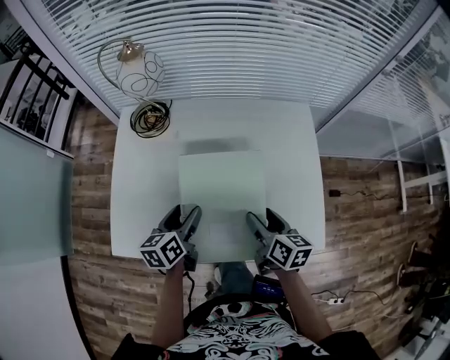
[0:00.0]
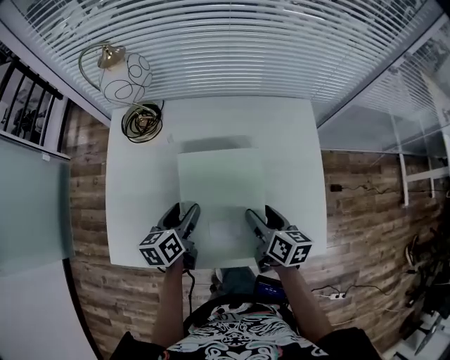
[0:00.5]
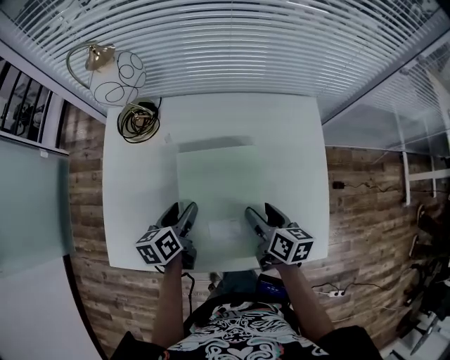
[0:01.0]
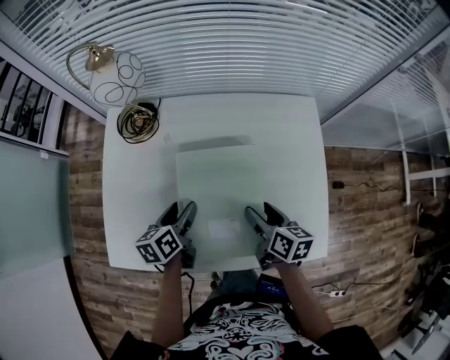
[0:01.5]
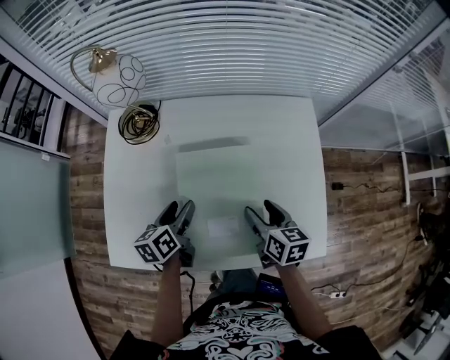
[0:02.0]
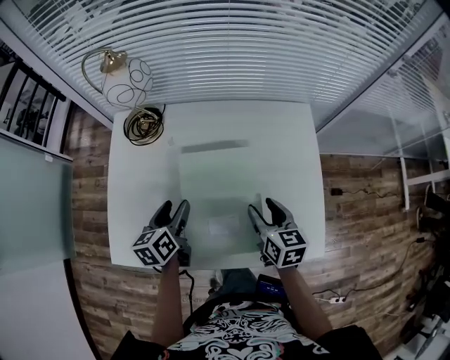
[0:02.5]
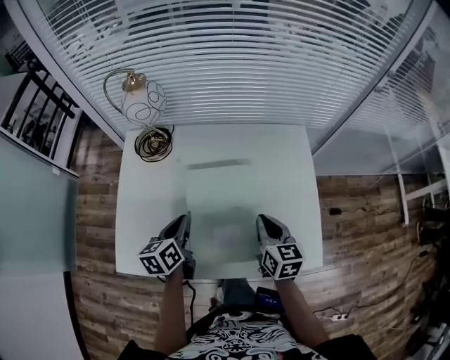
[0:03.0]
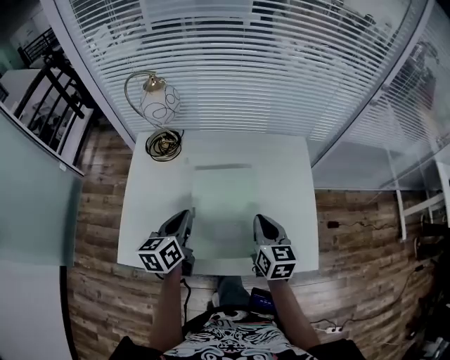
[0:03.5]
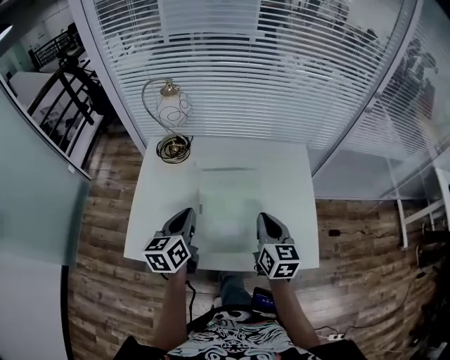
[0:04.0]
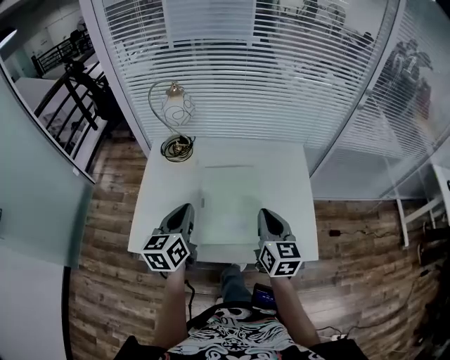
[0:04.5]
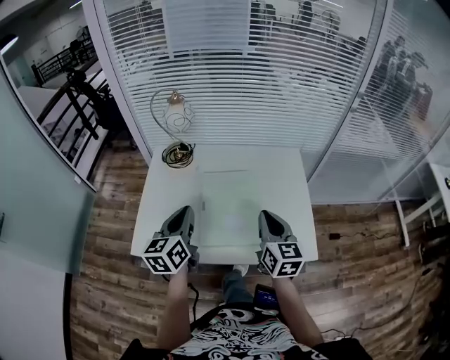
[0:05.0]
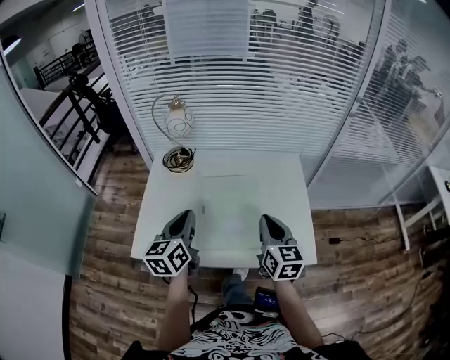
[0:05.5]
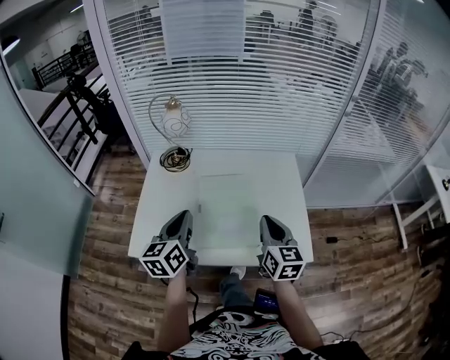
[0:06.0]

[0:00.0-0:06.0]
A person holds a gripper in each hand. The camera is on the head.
0:00.0 to 0:02.0: The right gripper shifts about 5 cm forward. Meanwhile the left gripper ends up some 5 cm from where it was.
0:02.0 to 0:04.0: The grippers both shift upward by approximately 15 cm. The right gripper changes its angle by some 30 degrees, and closes up, while the left gripper rotates approximately 20 degrees, and closes its fingers.
0:04.0 to 0:06.0: The right gripper shifts some 5 cm backward, while the left gripper heads upward and backward, covering roughly 10 cm.

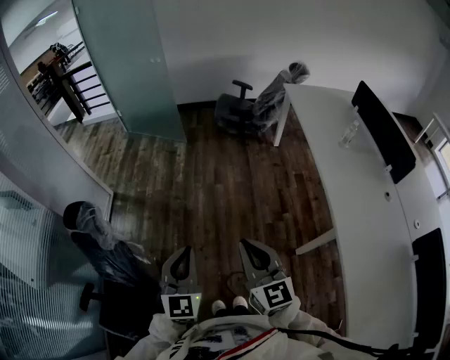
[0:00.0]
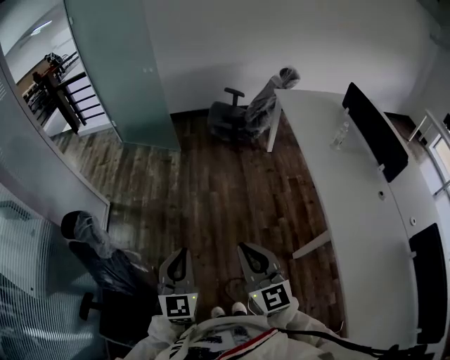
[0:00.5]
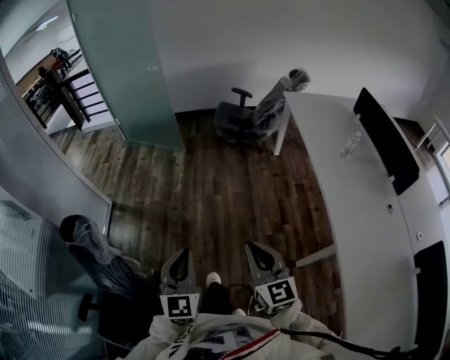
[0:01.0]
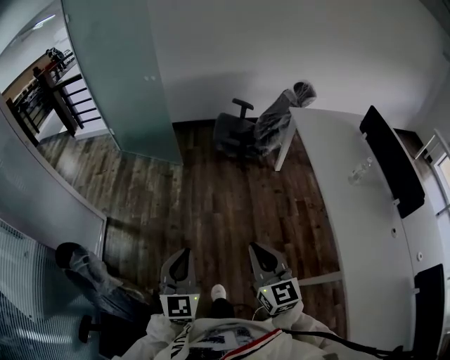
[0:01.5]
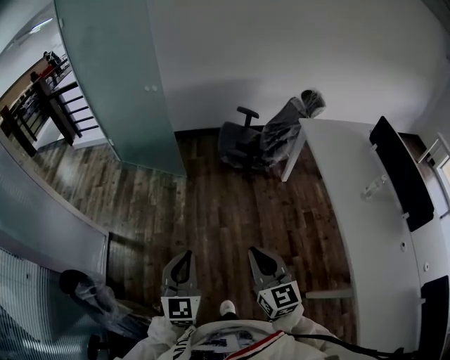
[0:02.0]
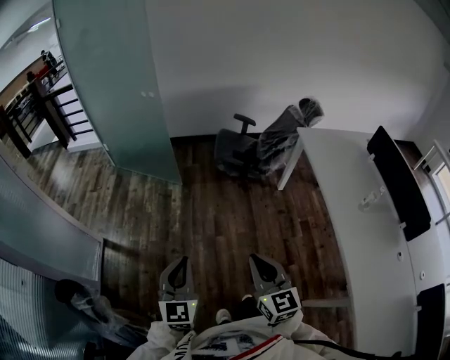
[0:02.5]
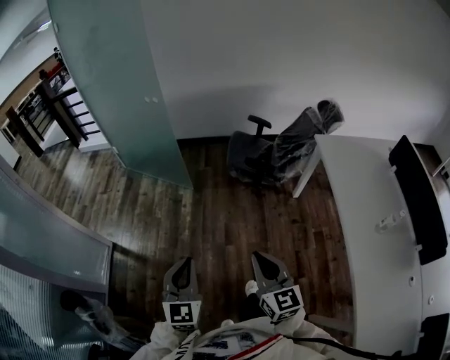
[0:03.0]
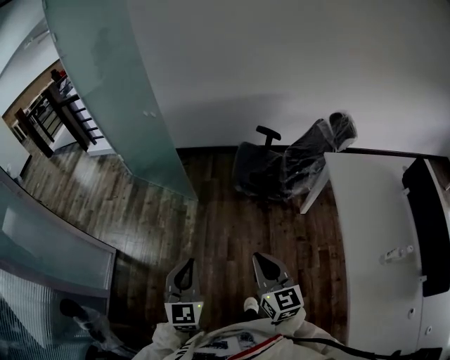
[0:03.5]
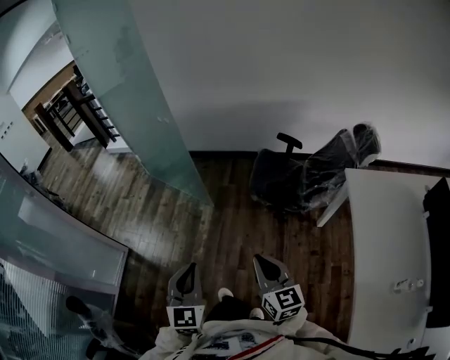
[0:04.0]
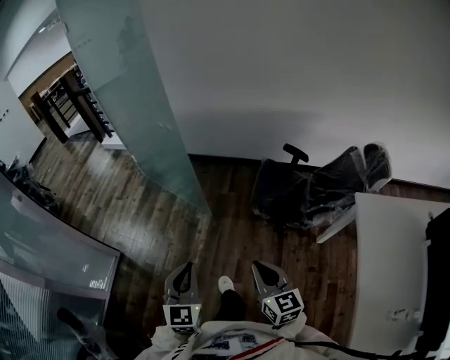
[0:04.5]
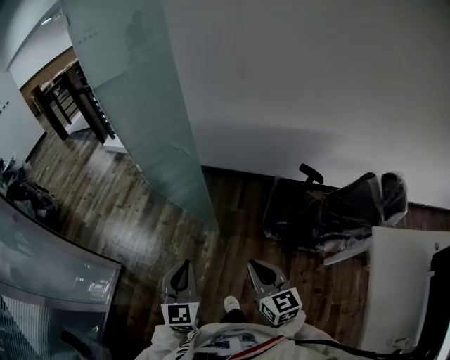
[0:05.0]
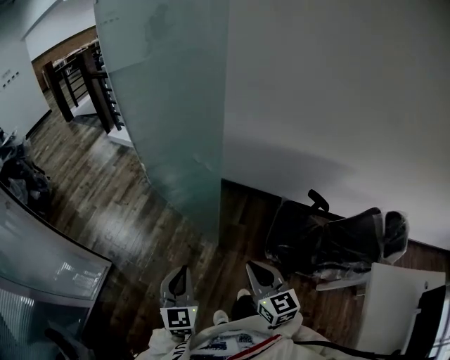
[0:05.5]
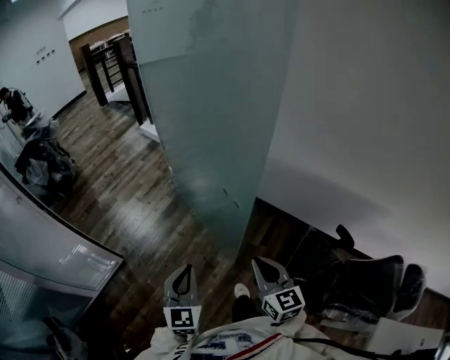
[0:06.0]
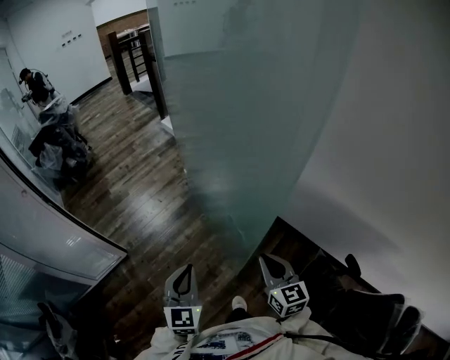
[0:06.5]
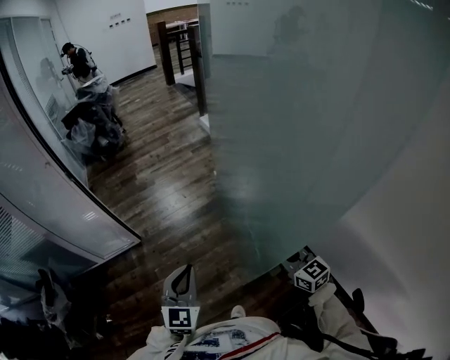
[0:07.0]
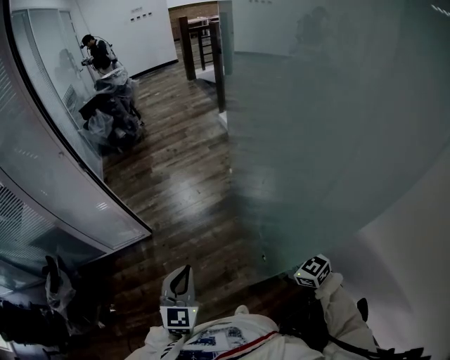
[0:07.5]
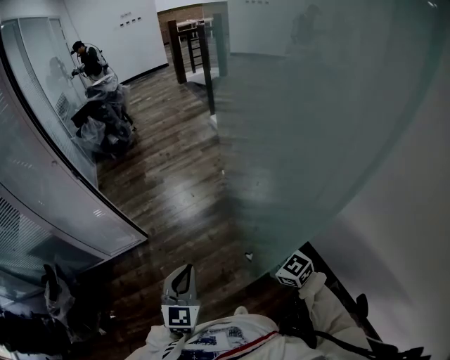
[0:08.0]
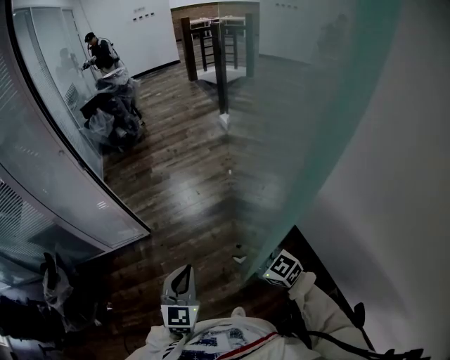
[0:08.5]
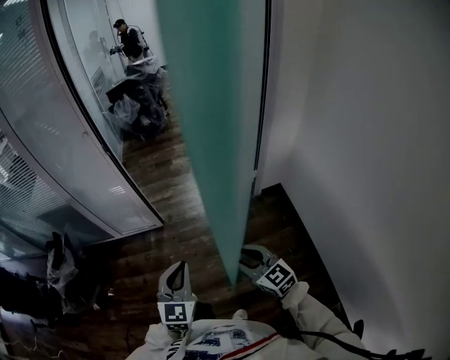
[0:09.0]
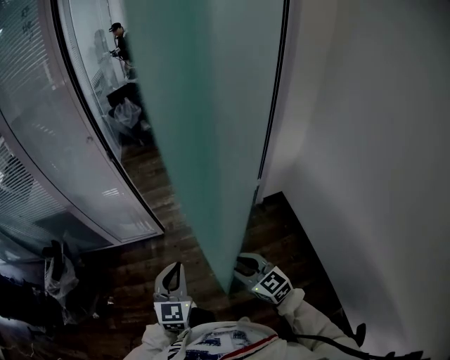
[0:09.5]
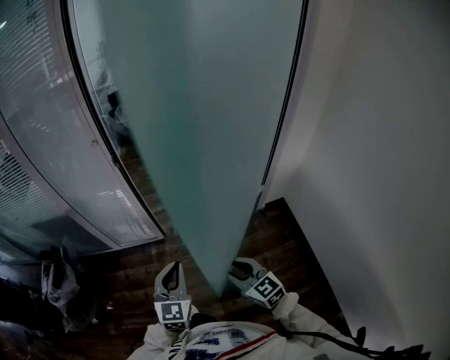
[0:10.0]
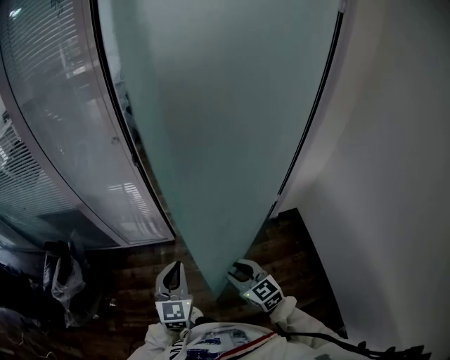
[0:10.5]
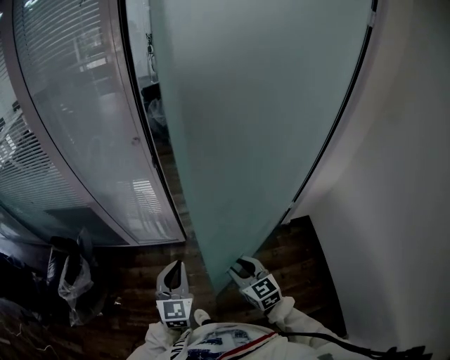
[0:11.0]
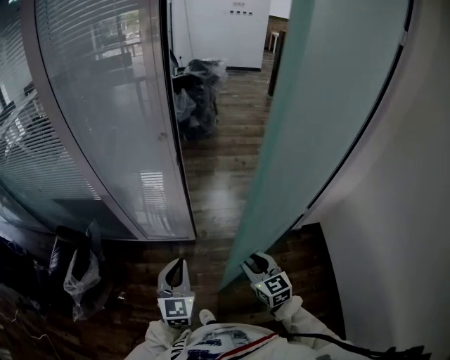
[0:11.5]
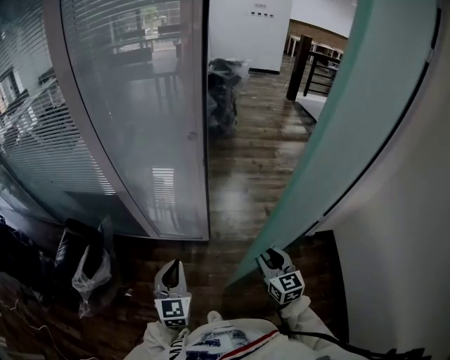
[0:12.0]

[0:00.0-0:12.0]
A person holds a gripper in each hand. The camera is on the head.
0:00.0 to 0:02.0: Both grippers move forward, approximately 30 cm.
0:02.0 to 0:04.0: The two grippers go approximately 30 cm forward.
0:04.0 to 0:06.0: Both grippers are carried forward, about 50 cm. The left gripper swivels about 20 degrees. Meanwhile the right gripper turns by approximately 30 degrees.
0:06.0 to 0:08.0: The right gripper changes place by approximately 20 cm, swivels approximately 60 degrees, and opens its fingers. The left gripper changes place by roughly 10 cm, and swivels some 20 degrees.
0:08.0 to 0:10.0: Both grippers move to the left and forward, about 25 cm.
0:10.0 to 0:12.0: The left gripper shifts roughly 30 cm to the left and forward, while the right gripper moves forward and to the left, roughly 25 cm.

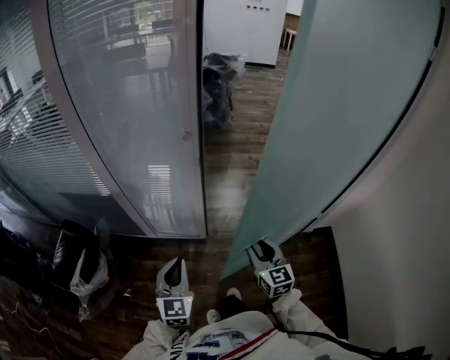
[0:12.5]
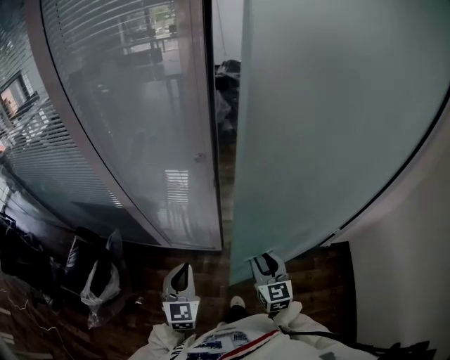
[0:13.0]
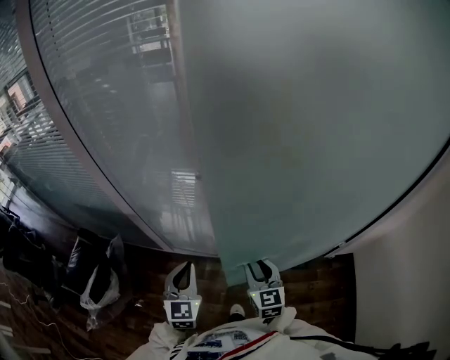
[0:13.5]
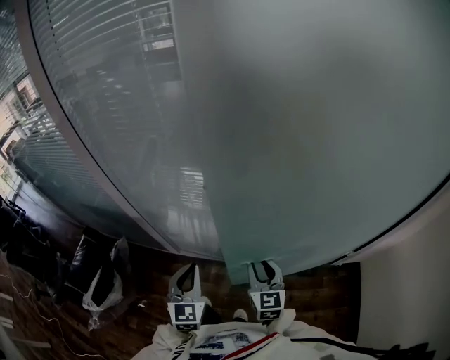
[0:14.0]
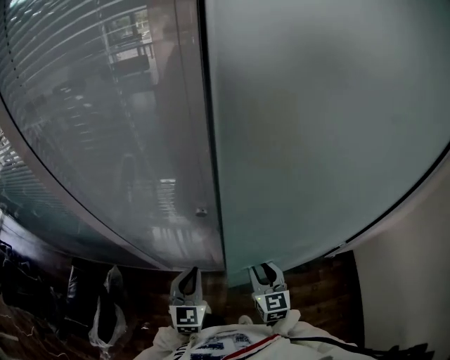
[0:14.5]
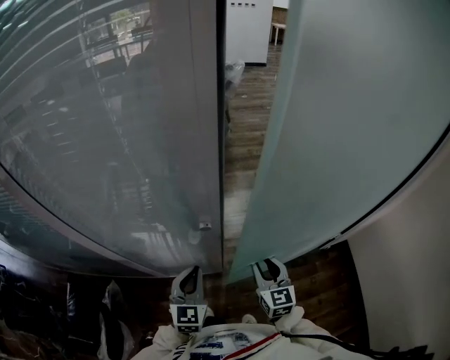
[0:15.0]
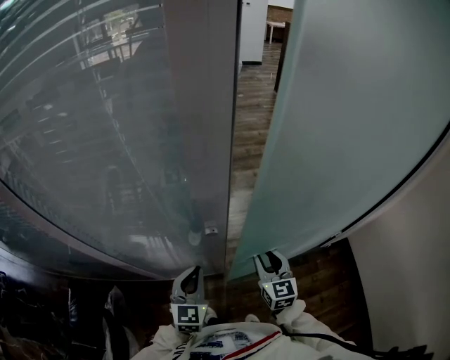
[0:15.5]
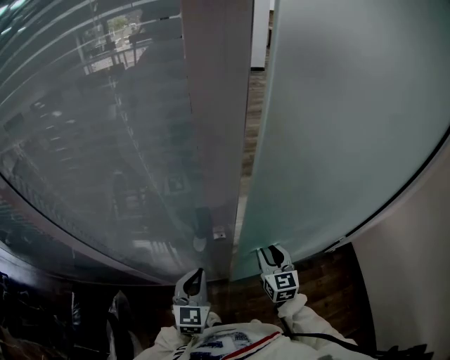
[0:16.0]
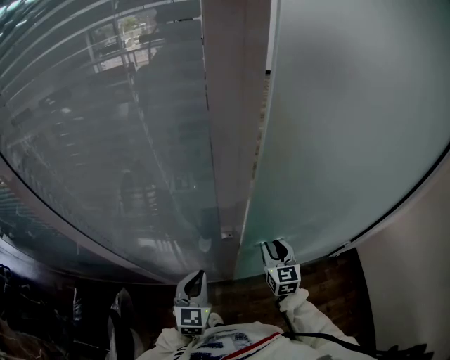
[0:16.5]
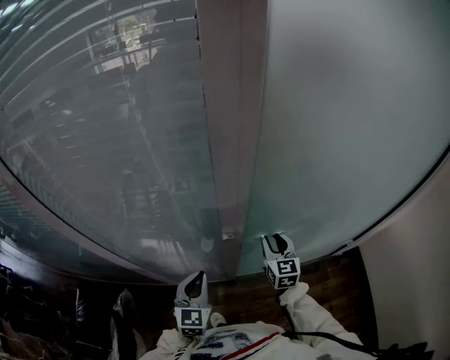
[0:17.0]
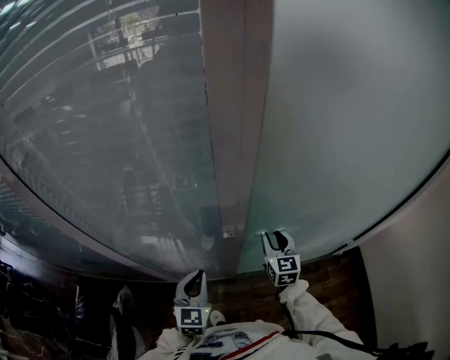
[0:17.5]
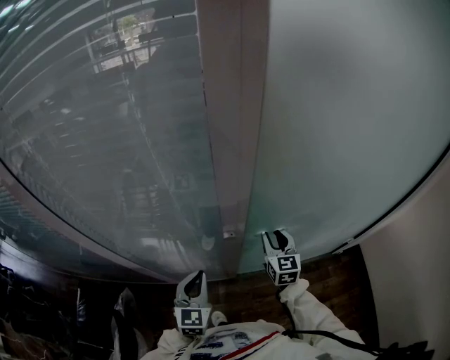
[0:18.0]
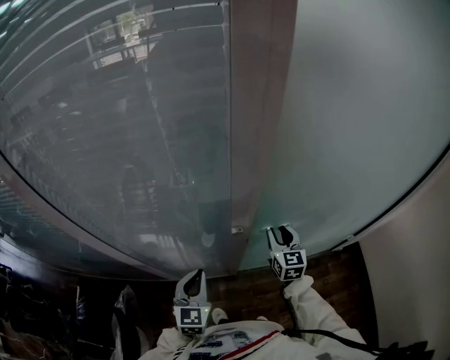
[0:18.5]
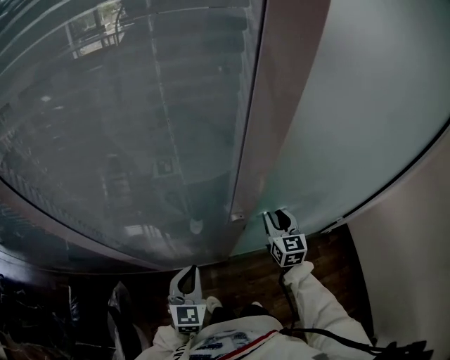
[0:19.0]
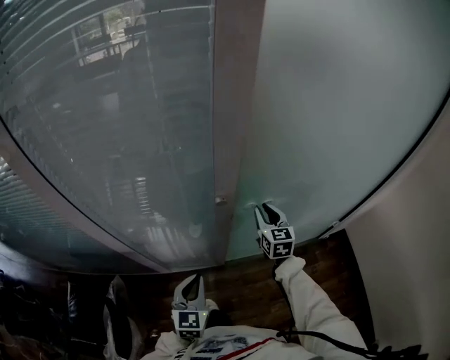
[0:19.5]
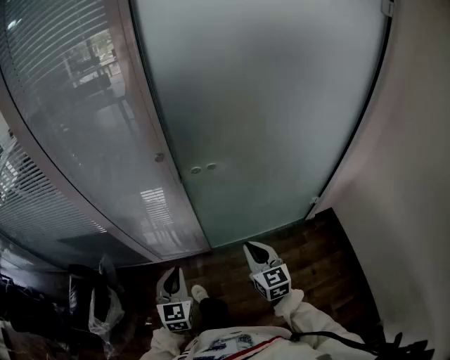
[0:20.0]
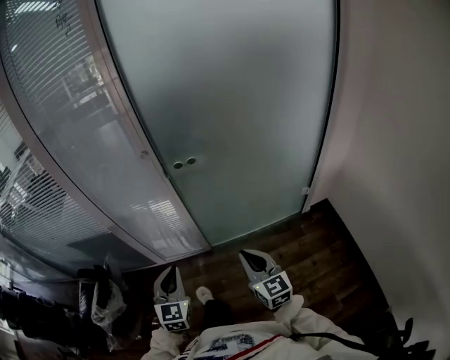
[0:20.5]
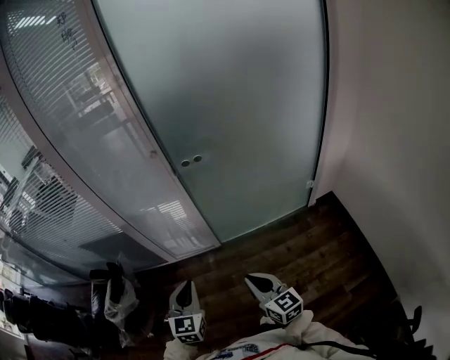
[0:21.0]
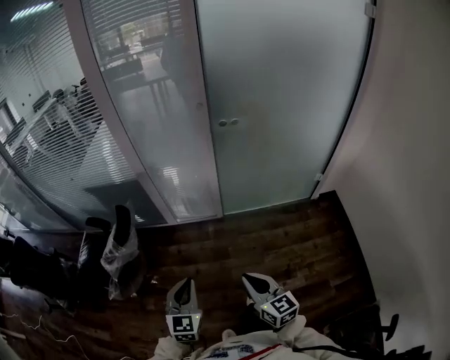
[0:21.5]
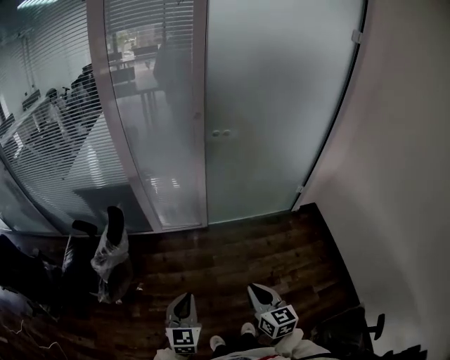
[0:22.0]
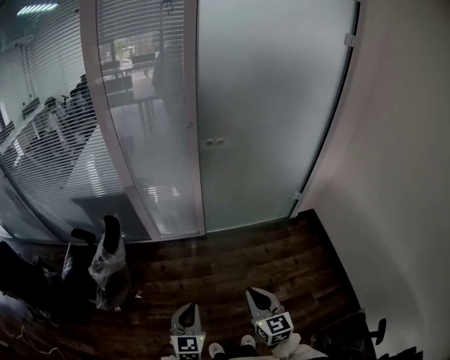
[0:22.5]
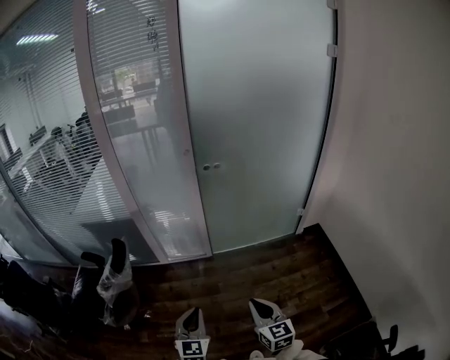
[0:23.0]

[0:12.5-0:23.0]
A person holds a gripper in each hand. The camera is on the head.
0:12.5 to 0:14.5: The grippers both shift forward by roughly 20 cm.
0:14.5 to 0:16.5: The right gripper is displaced forward by approximately 10 cm. Meanwhile the left gripper shifts approximately 5 cm forward and to the left.
0:16.5 to 0:19.0: The left gripper shifts by approximately 5 cm.
0:19.0 to 0:21.0: The two grippers travel together, backward, about 50 cm. The right gripper changes its angle by about 30 degrees, and closes.
0:21.0 to 0:23.0: The two grippers go roughly 20 cm backward.
